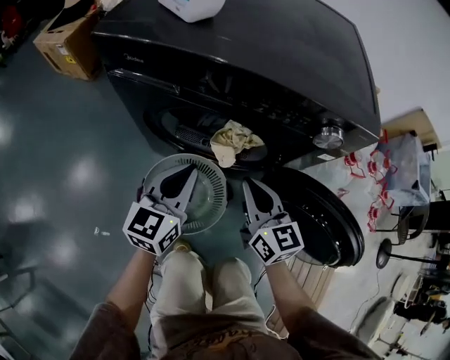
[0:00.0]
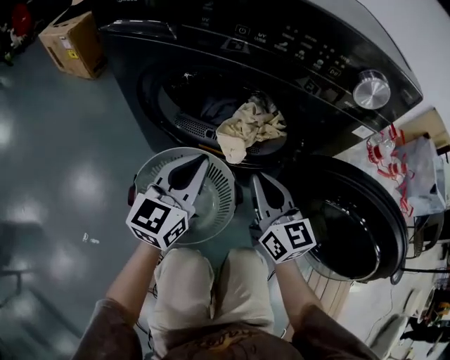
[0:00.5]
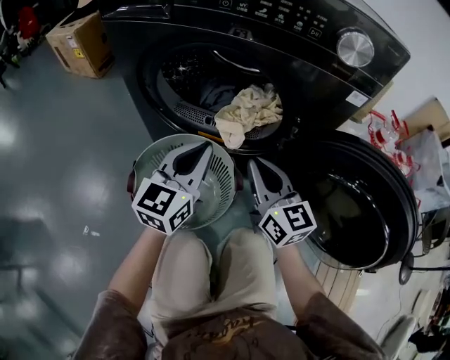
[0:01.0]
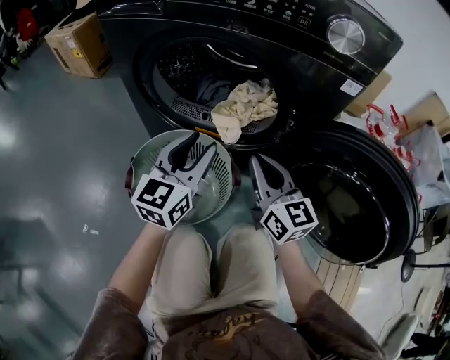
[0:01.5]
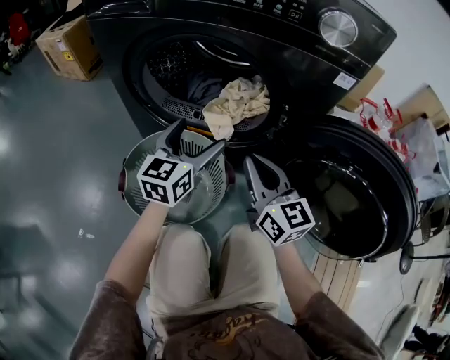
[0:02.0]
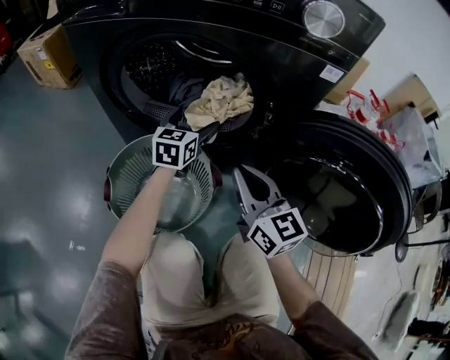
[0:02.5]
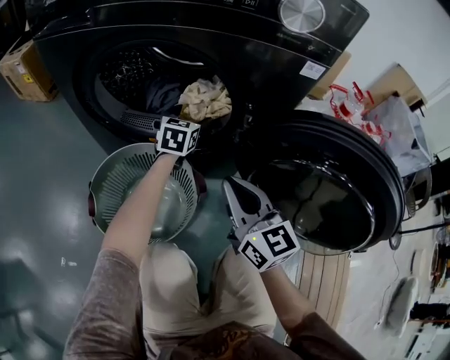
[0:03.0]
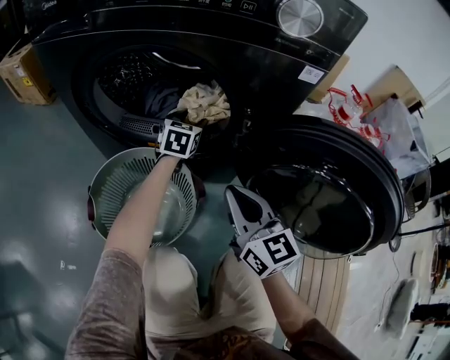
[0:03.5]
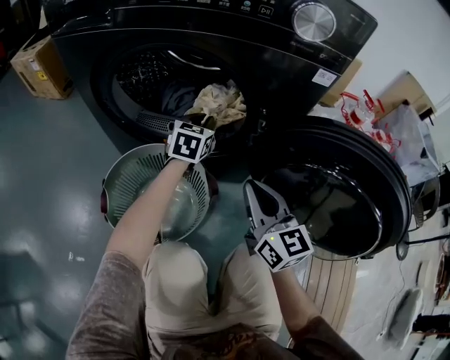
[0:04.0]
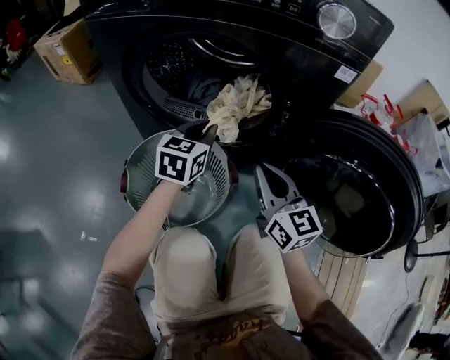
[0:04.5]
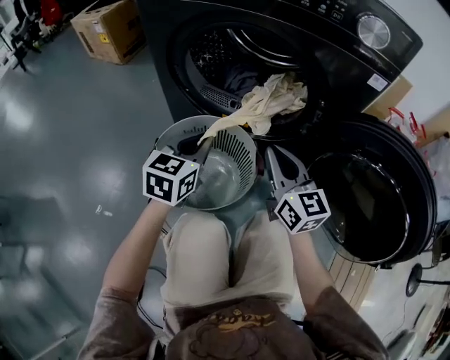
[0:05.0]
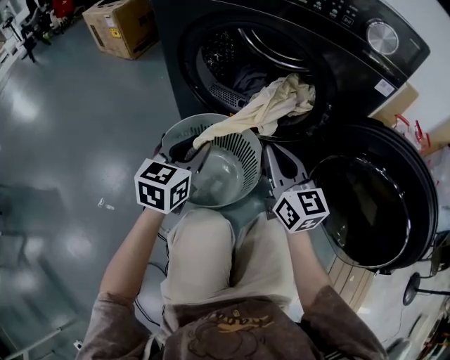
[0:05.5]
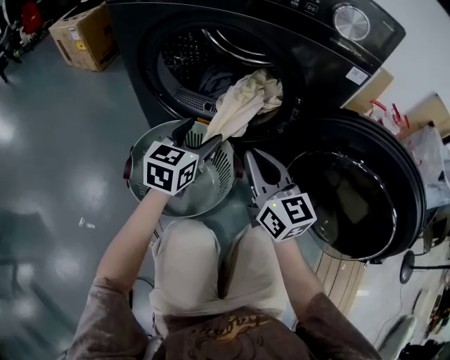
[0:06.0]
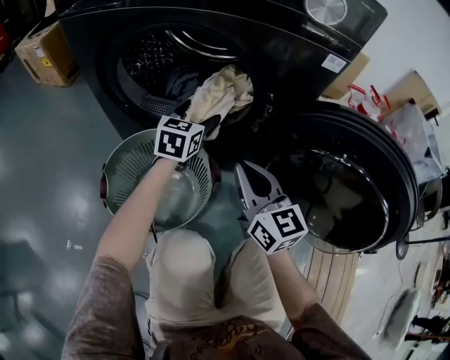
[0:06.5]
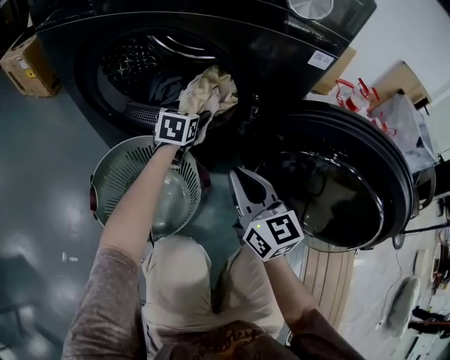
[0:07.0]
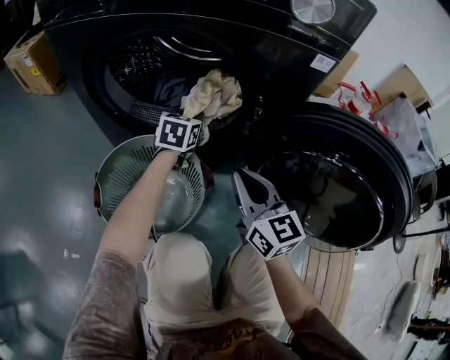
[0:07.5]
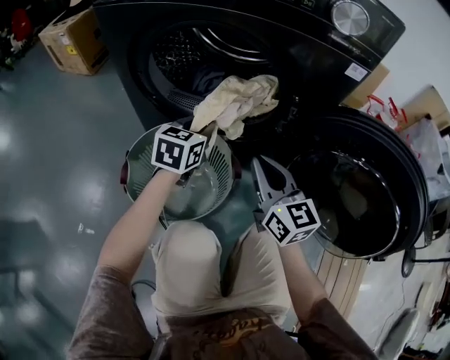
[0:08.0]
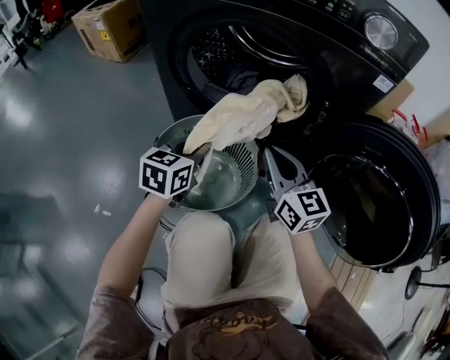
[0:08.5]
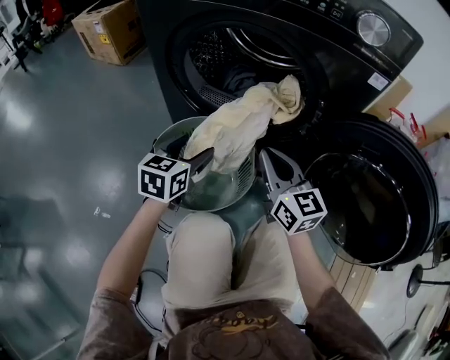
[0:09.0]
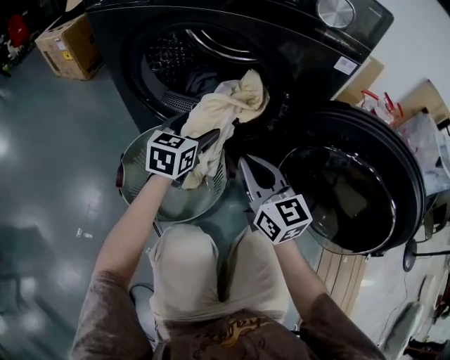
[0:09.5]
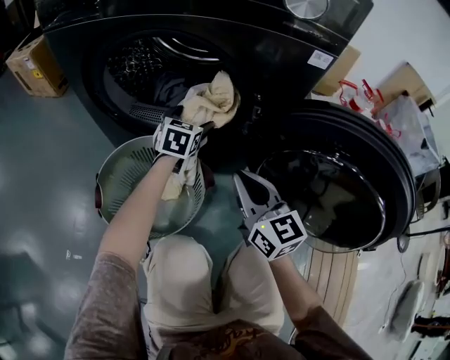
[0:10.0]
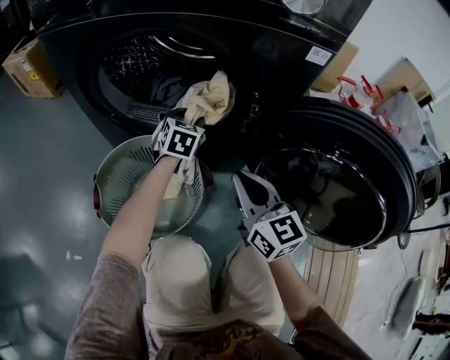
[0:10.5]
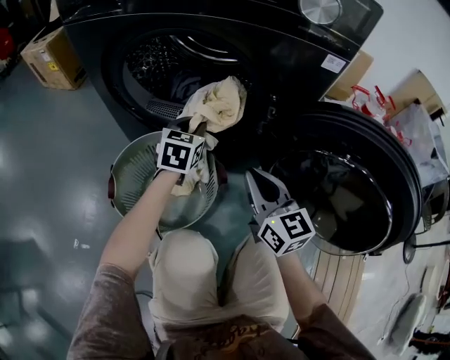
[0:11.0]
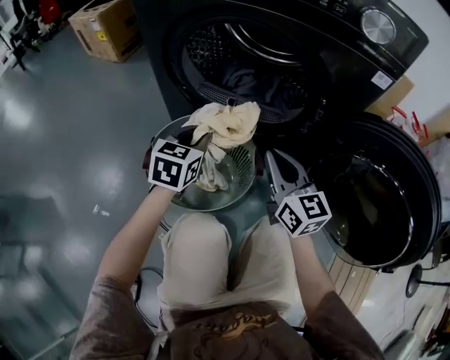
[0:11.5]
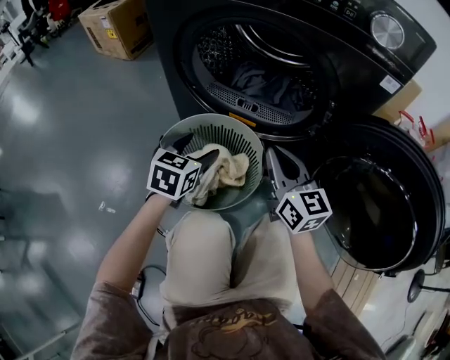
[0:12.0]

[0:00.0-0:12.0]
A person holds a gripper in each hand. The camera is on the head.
0:00.0 to 0:02.0: The right gripper is displaced downward by roughly 15 cm, while the left gripper travels downward and to the right by about 15 cm, and opens its fingers.
0:02.0 to 0:04.0: The right gripper ends up approximately 5 cm from where it was. The left gripper is displaced forward, downward and to the right by approximately 20 cm, swivels roughly 20 degrees, and closes.
0:04.0 to 0:06.0: The right gripper heads to the left, covering about 5 cm. Meanwhile the left gripper goes approximately 15 cm backward and to the left, and opens its fingers.
0:06.0 to 0:08.0: The left gripper goes forward and returns, some 15 cm each way, and closes up.
0:08.0 to 0:10.0: The left gripper is displaced forward, to the right and downward by some 15 cm, and opens up.
0:10.0 to 0:12.0: The right gripper moves to the left, some 5 cm. Meanwhile the left gripper shifts about 25 cm backward and to the left, and closes, then opens again.

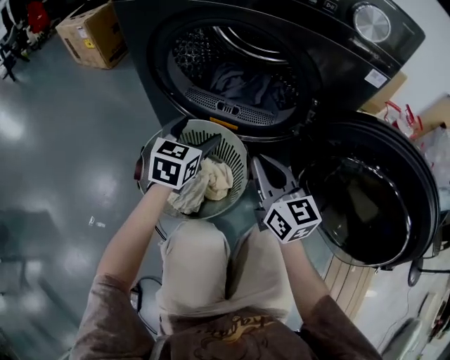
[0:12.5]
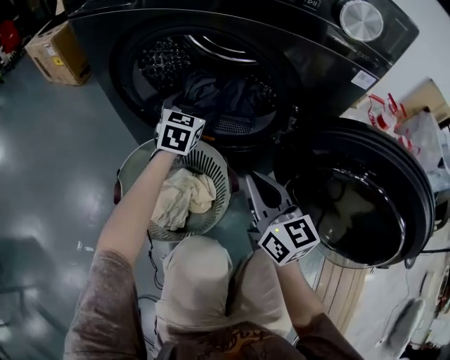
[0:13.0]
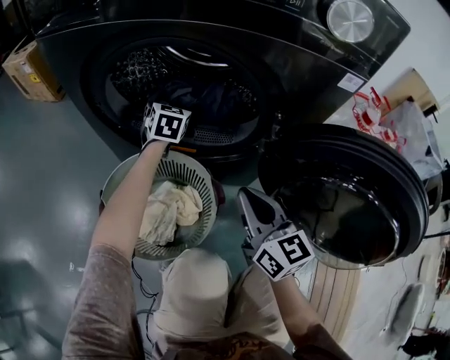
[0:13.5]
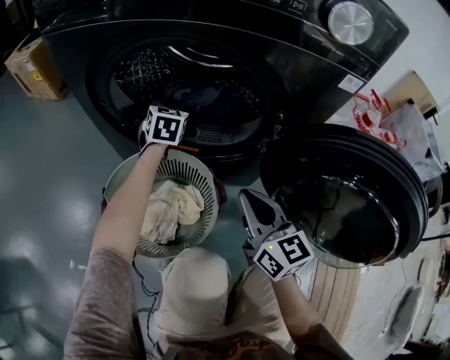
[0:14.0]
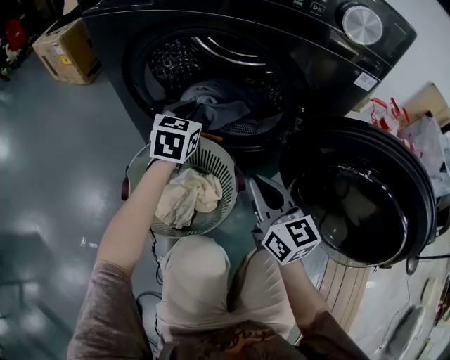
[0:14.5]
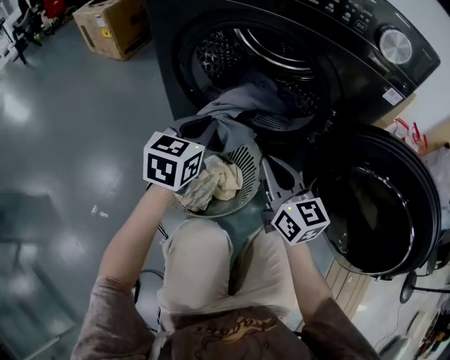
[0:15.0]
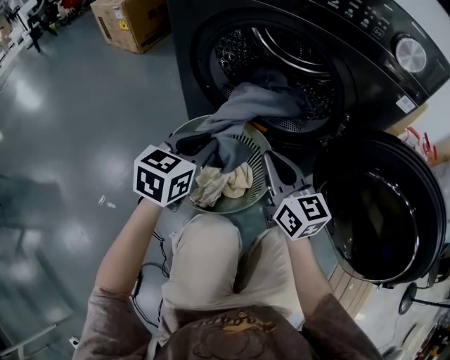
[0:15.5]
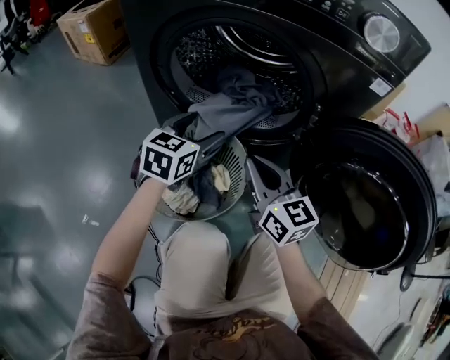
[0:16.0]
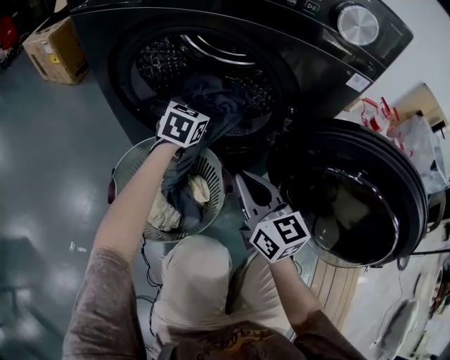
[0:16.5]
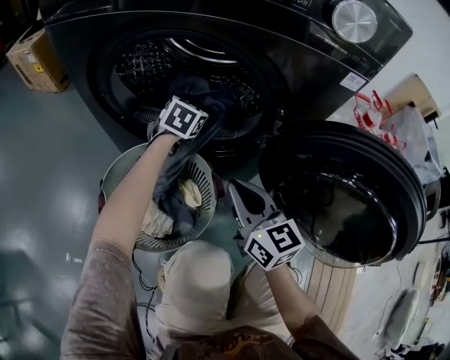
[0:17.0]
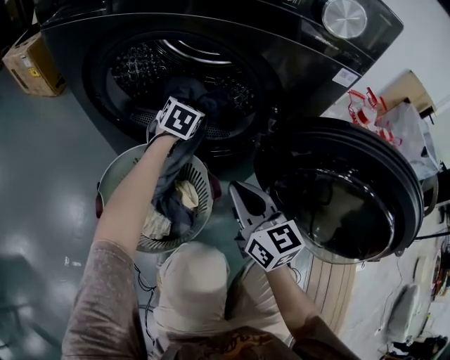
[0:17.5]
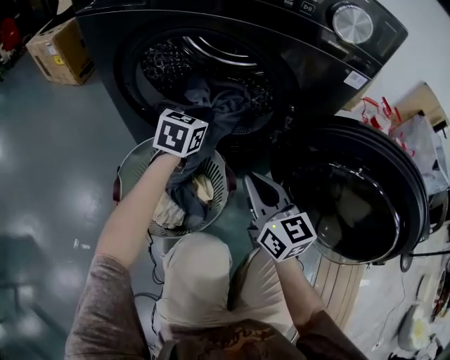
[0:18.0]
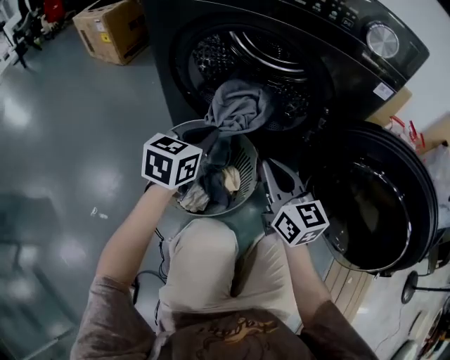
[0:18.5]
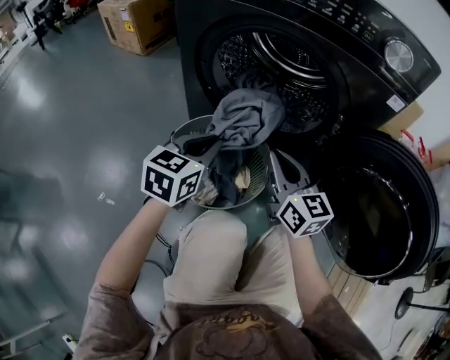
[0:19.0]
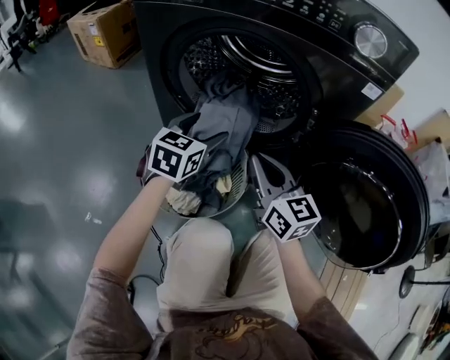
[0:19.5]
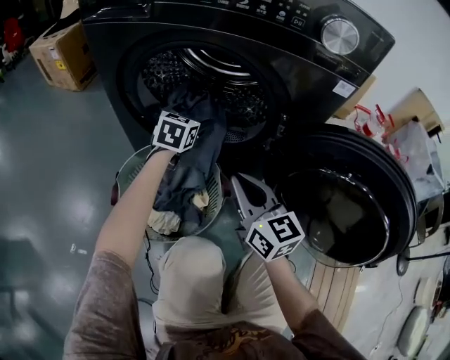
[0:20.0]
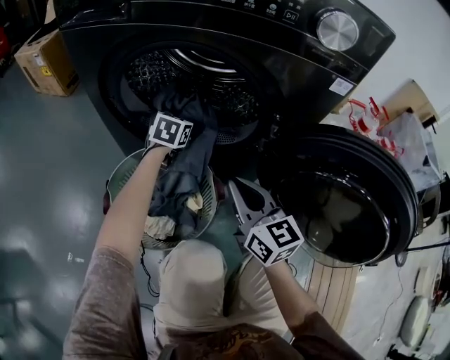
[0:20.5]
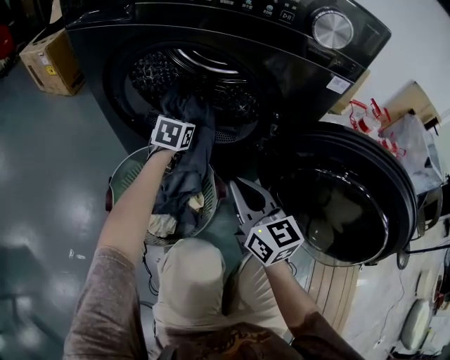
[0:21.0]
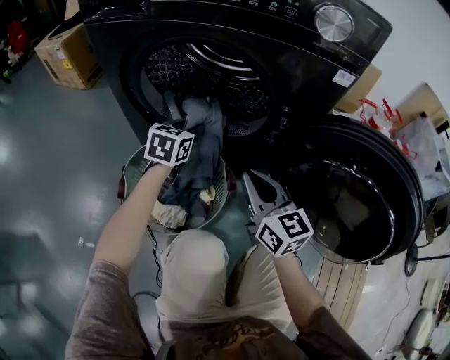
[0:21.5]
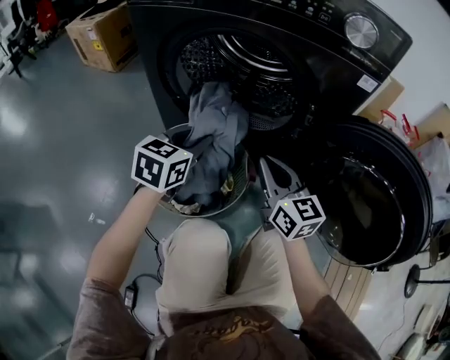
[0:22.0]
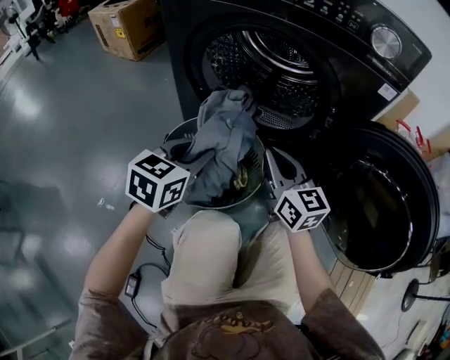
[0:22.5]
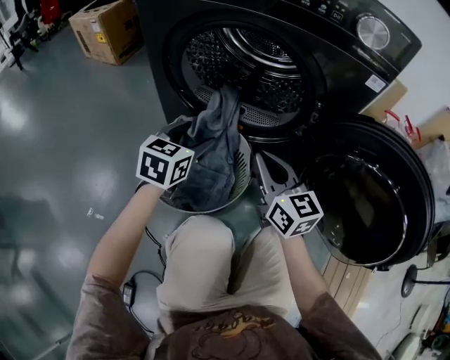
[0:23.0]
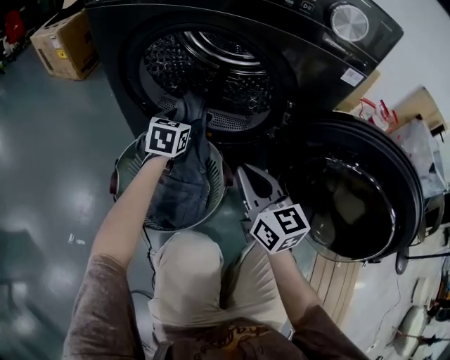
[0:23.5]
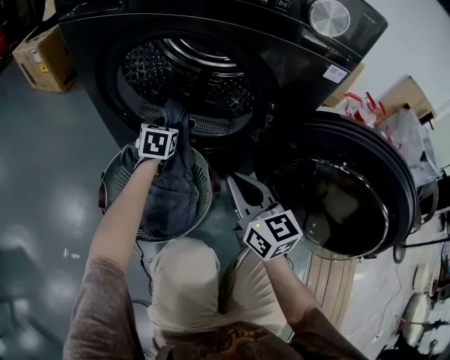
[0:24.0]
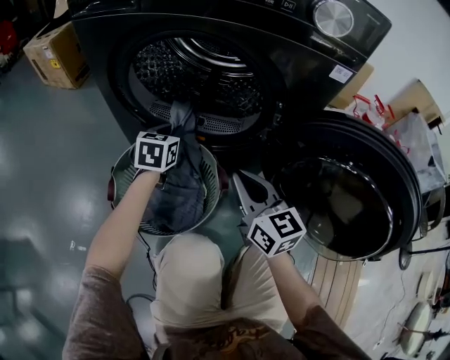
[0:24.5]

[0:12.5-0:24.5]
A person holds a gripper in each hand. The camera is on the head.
0:12.5 to 0:14.5: The left gripper goes roughly 10 cm forward, and closes.
0:14.5 to 0:16.5: The left gripper travels to the right by some 5 cm, reaches roughly 20 cm backward, then returns, and opens up.
0:16.5 to 0:18.5: The left gripper goes about 20 cm backward and to the left, and closes.
0:18.5 to 0:20.5: The left gripper shifts about 25 cm forward, downward and to the right, and opens its fingers.
0:20.5 to 0:22.5: The left gripper is displaced backward and upward by some 30 cm, and closes.
0:22.5 to 0:24.5: The left gripper is displaced forward and downward by roughly 20 cm, and opens, then closes once more; the right gripper is displaced to the right by about 5 cm.

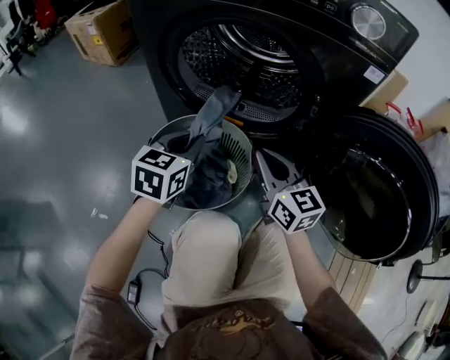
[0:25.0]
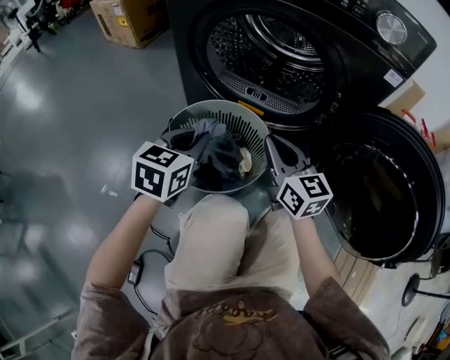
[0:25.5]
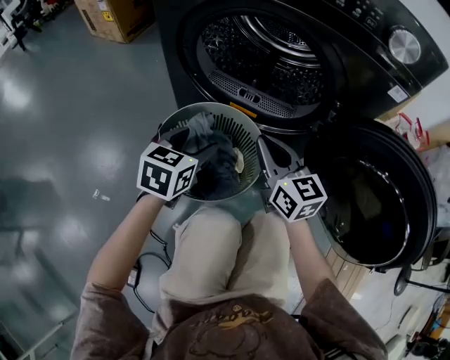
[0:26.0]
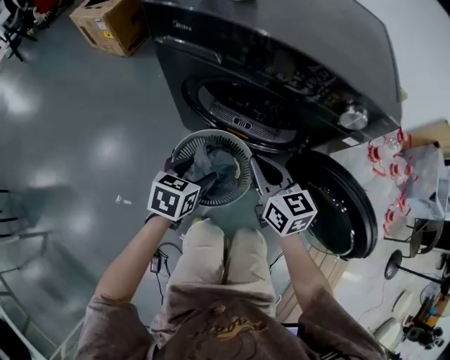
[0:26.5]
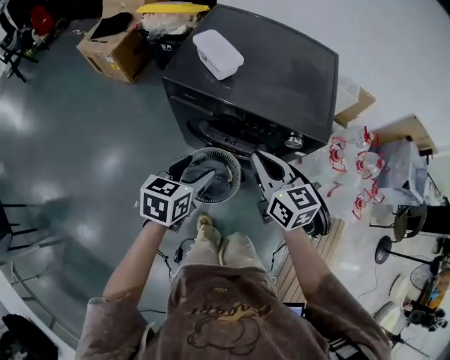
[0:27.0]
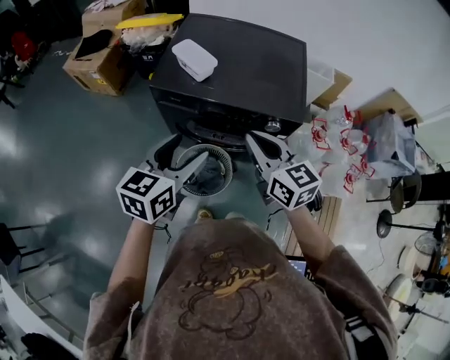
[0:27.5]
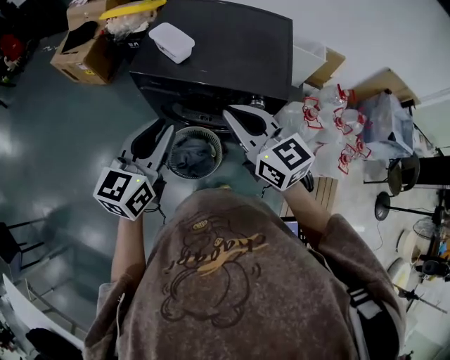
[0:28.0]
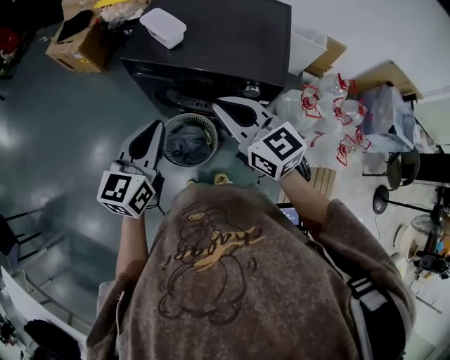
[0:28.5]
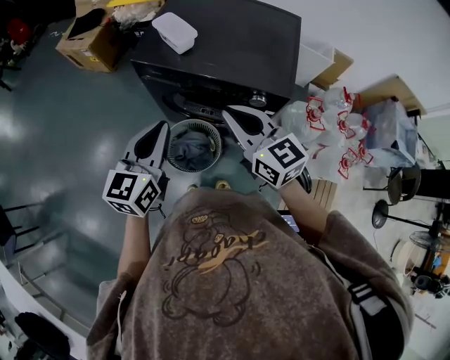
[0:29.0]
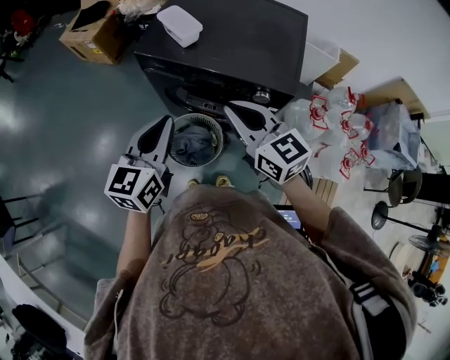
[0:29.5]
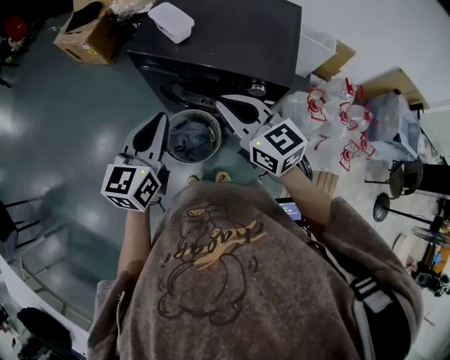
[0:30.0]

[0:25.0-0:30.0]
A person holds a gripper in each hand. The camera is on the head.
0:25.0 to 0:27.5: The two grippers go about 60 cm upward. The left gripper opens.
0:27.5 to 0:30.0: The left gripper closes its fingers.
